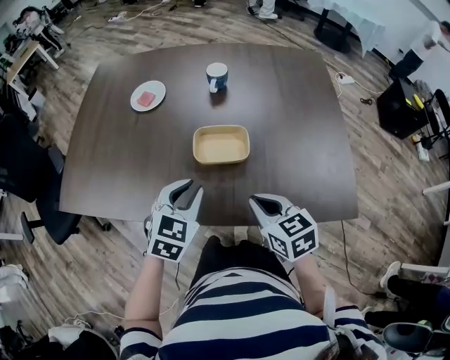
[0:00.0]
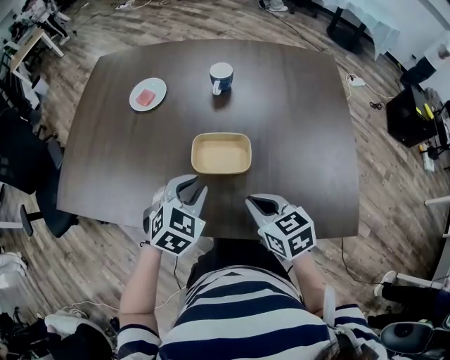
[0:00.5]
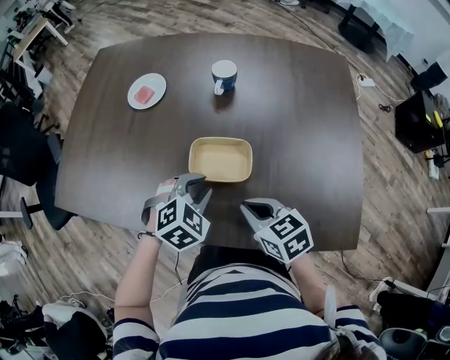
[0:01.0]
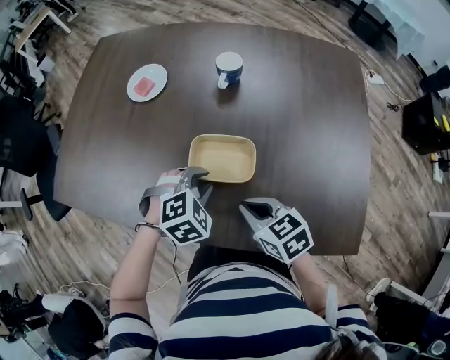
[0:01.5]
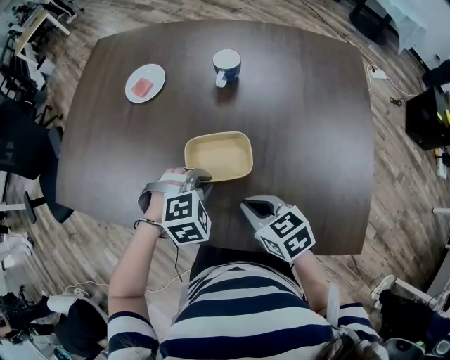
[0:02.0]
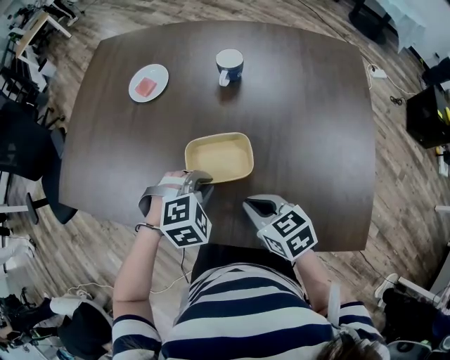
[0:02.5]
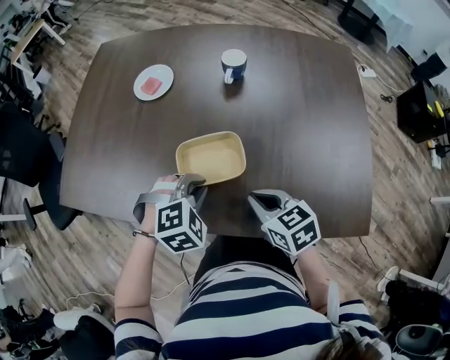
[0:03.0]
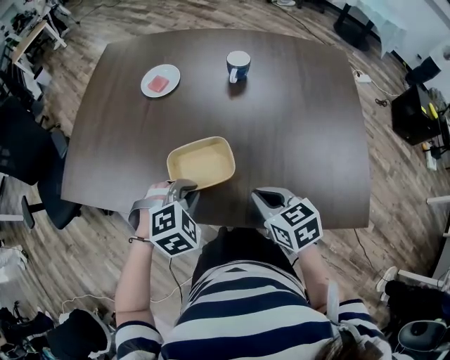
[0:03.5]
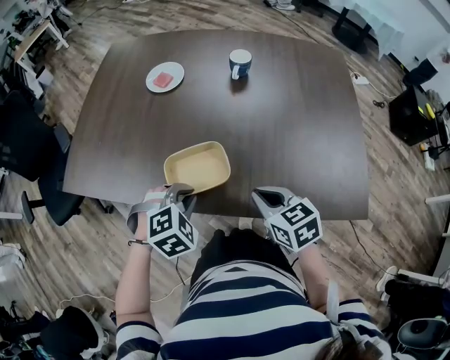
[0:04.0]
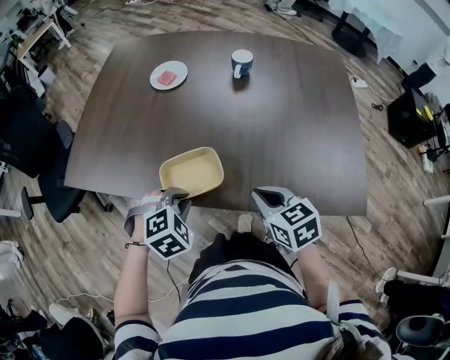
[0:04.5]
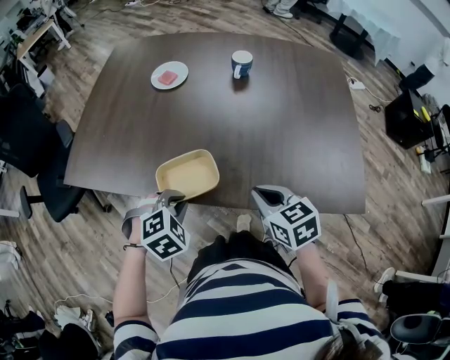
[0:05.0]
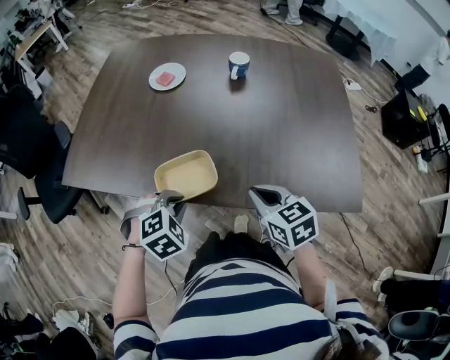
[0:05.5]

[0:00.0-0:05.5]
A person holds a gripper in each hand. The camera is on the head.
0:00.0 to 0:02.0: The left gripper travels downward, forward and to the right by approximately 15 cm, and angles its fingers downward, by approximately 30 degrees; the right gripper is displaced forward and downward by approximately 10 cm.
0:02.0 to 0:03.5: The right gripper changes place by some 10 cm. Meanwhile the left gripper is displaced to the left and backward by approximately 15 cm.
0:03.5 to 0:05.5: The right gripper goes some 5 cm backward; the left gripper is displaced backward and to the left by some 10 cm.

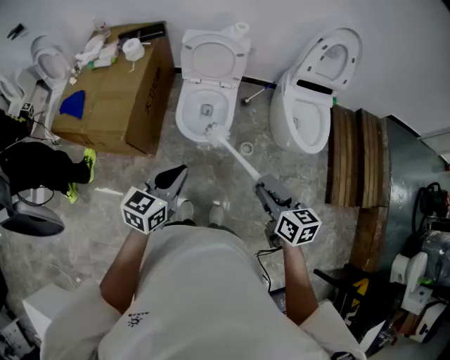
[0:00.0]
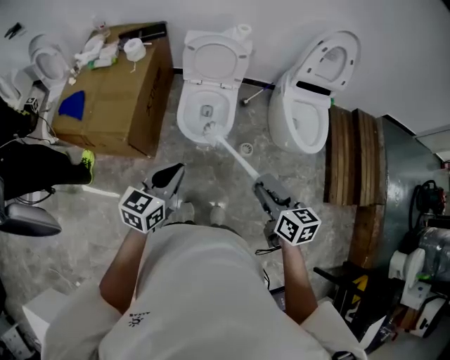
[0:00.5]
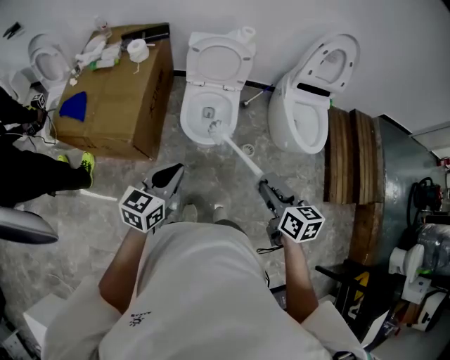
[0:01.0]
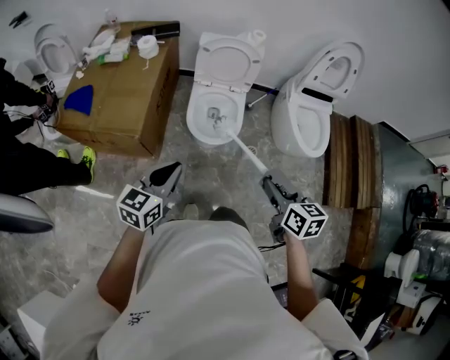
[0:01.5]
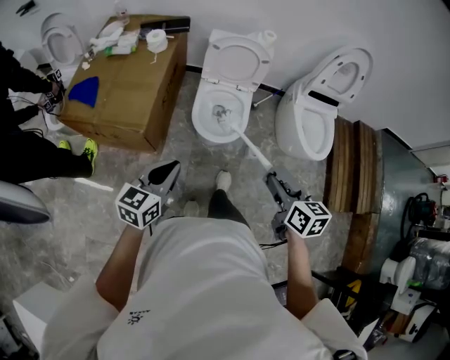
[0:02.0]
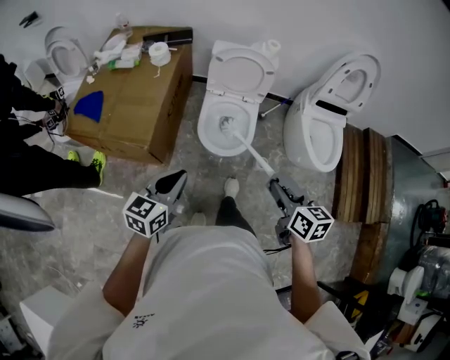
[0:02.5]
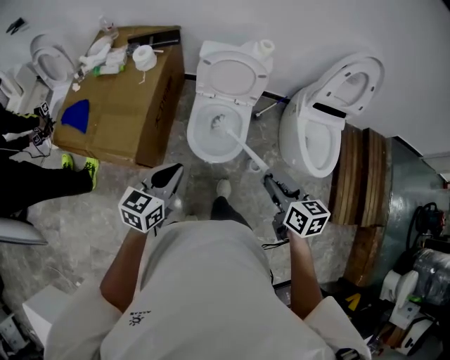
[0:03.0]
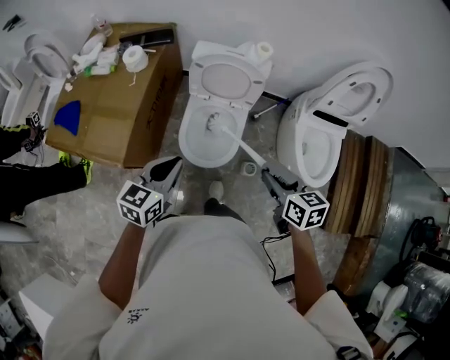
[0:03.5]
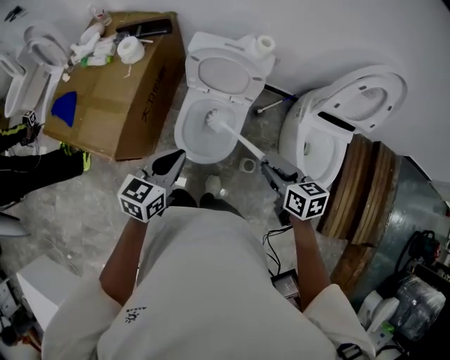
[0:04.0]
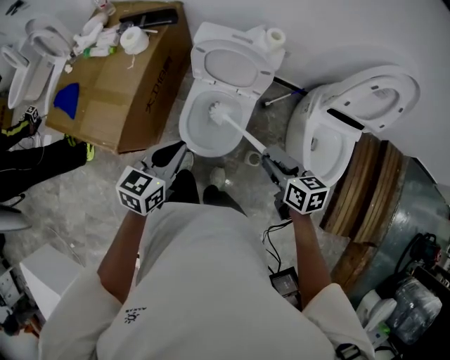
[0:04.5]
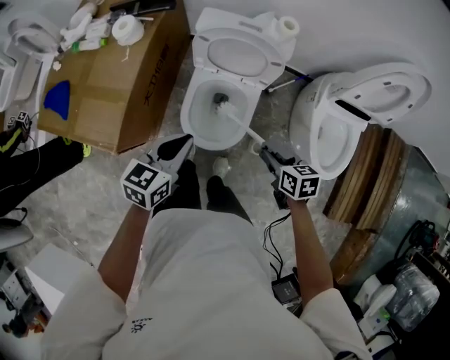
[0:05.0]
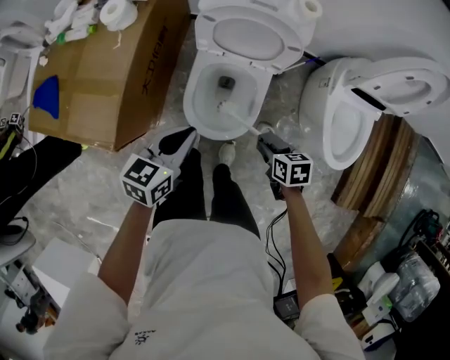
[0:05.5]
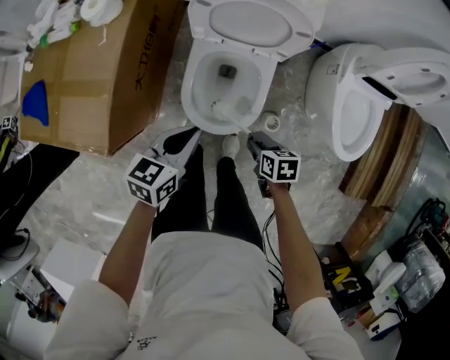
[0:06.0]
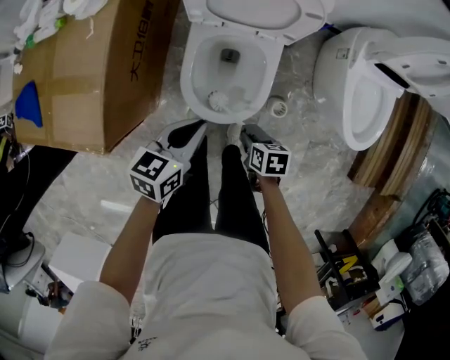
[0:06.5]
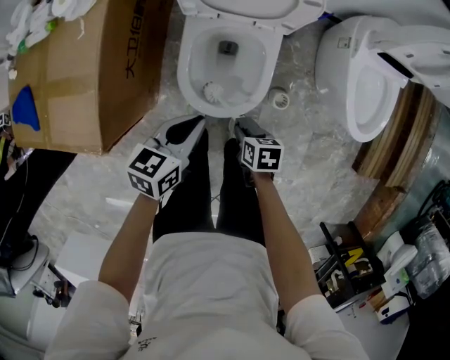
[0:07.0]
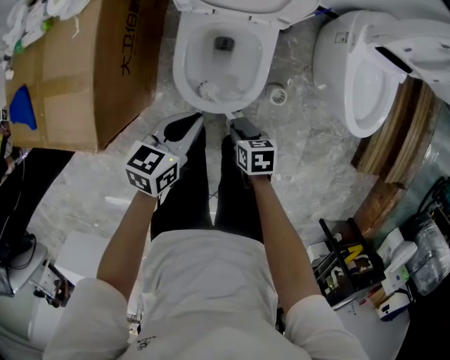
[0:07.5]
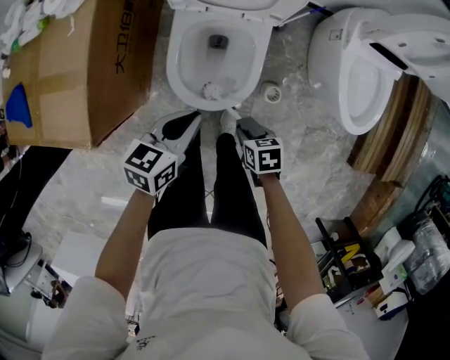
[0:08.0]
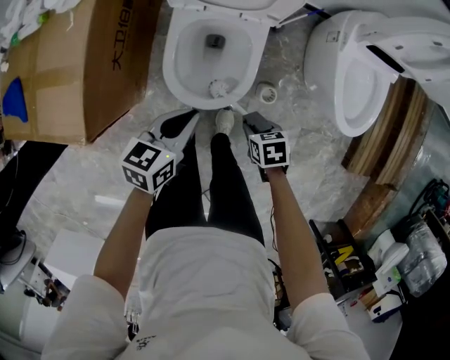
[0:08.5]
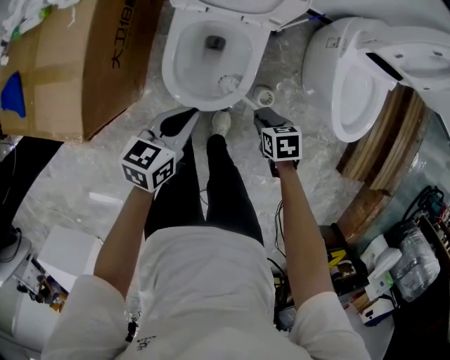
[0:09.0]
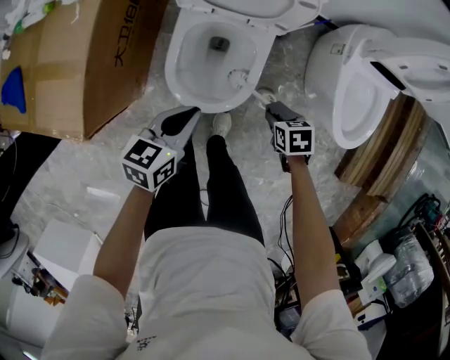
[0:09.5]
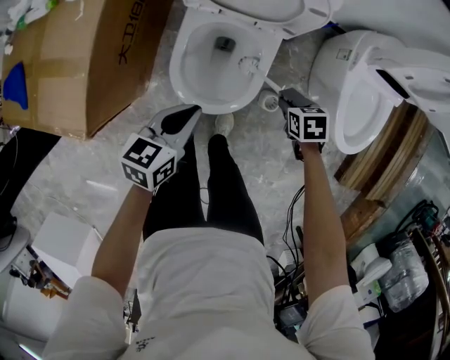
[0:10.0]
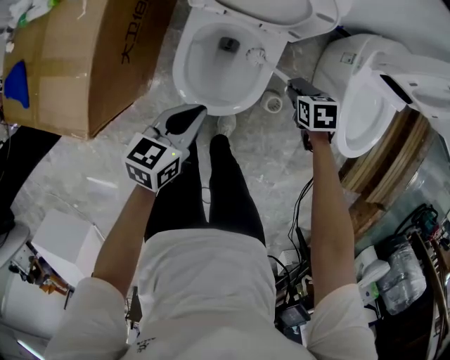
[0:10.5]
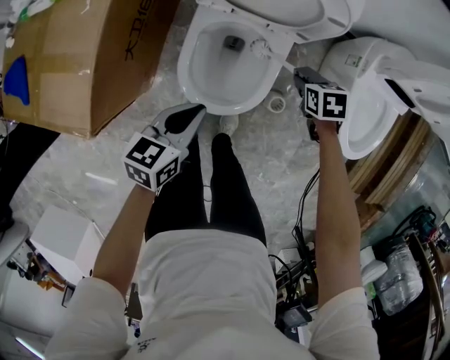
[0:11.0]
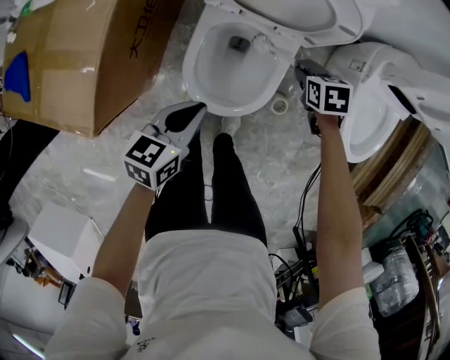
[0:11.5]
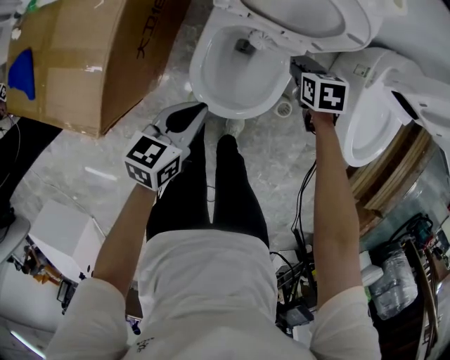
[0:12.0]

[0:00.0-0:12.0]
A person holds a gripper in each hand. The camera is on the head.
0:00.0 to 0:02.0: Both grippers travel together to the left, approximately 15 cm.
0:02.0 to 0:04.0: Both grippers travel together forward and to the right, approximately 35 cm. The right gripper changes its angle by approximately 20 degrees.
0:04.0 to 0:06.0: The left gripper goes roughly 20 cm downward, while the right gripper goes approximately 30 cm downward, and turns by some 30 degrees.
0:06.0 to 0:08.0: The left gripper goes some 5 cm downward. Meanwhile the right gripper travels backward and downward by about 10 cm.
0:08.0 to 0:10.0: The right gripper moves roughly 20 cm.
0:10.0 to 0:12.0: The left gripper changes place by roughly 5 cm, while the right gripper shifts by about 15 cm.

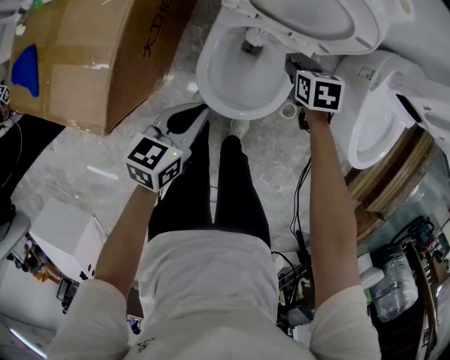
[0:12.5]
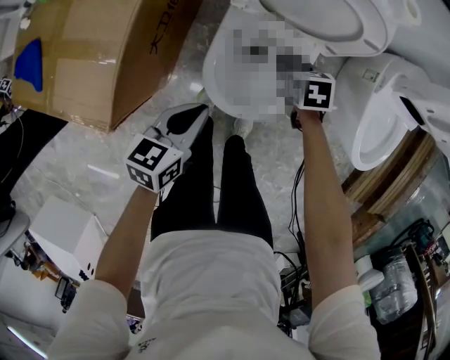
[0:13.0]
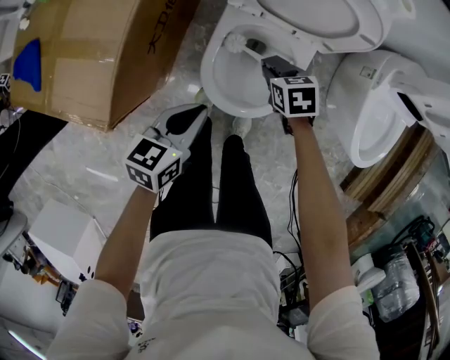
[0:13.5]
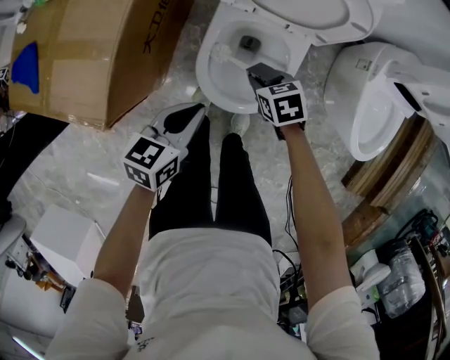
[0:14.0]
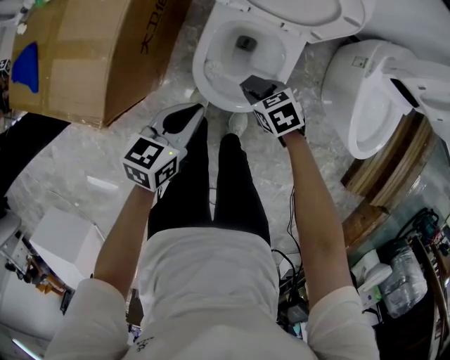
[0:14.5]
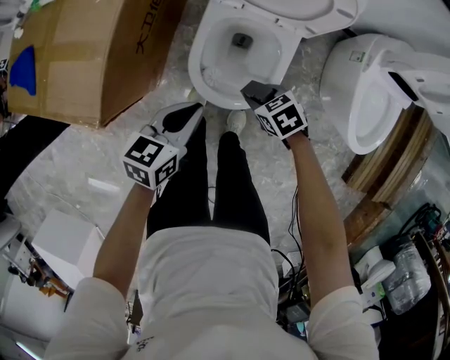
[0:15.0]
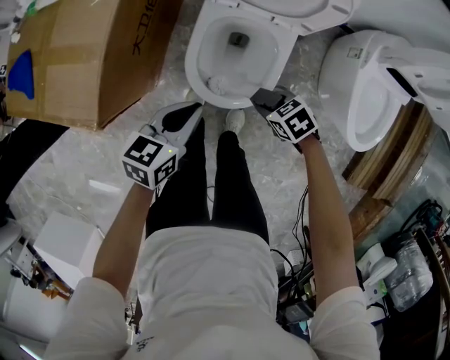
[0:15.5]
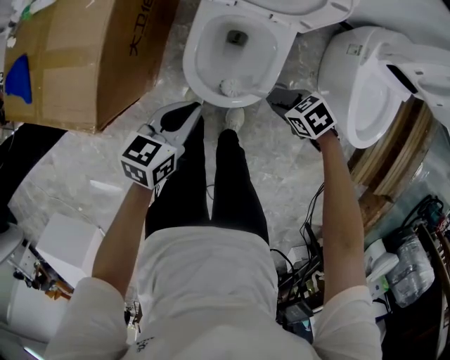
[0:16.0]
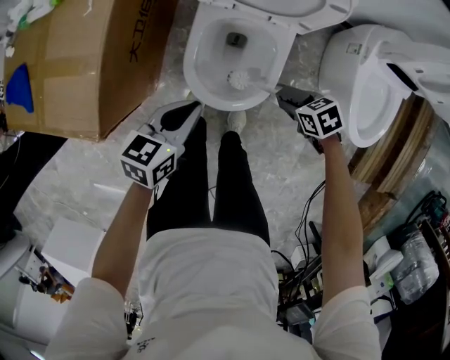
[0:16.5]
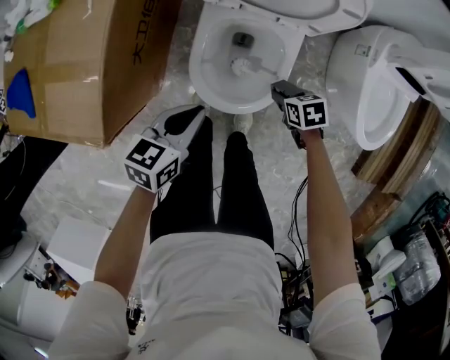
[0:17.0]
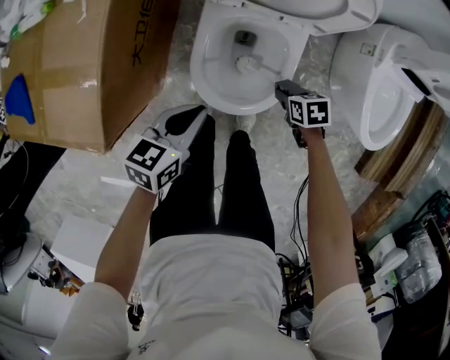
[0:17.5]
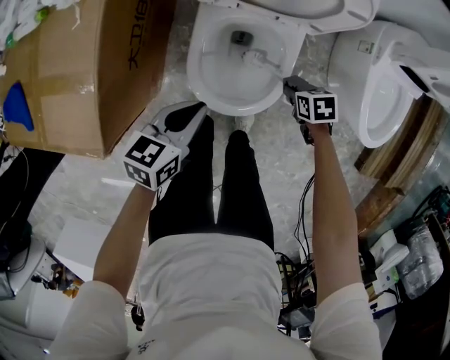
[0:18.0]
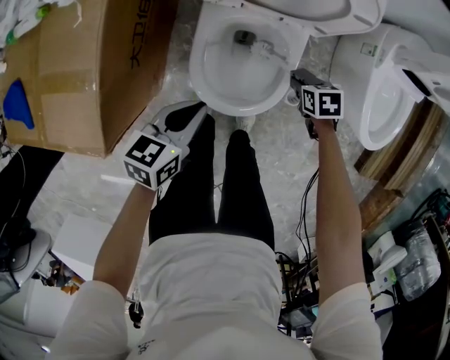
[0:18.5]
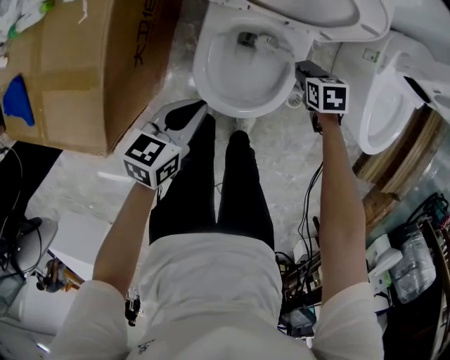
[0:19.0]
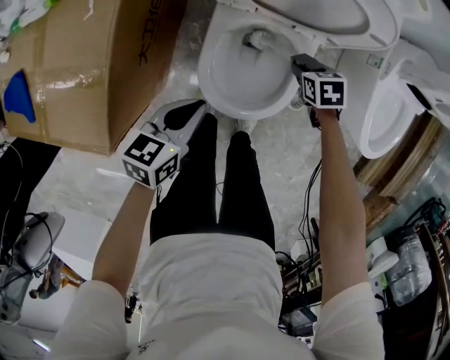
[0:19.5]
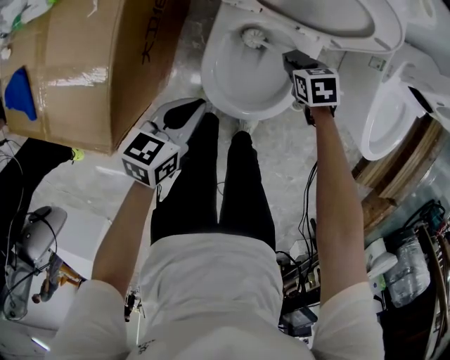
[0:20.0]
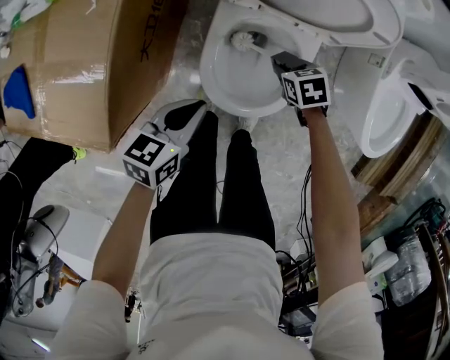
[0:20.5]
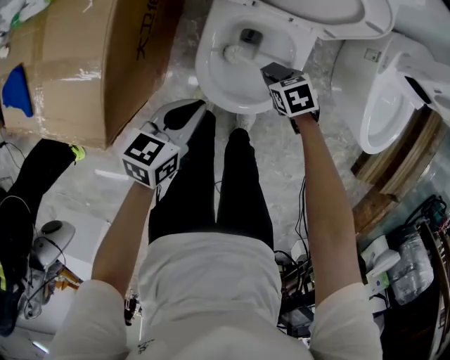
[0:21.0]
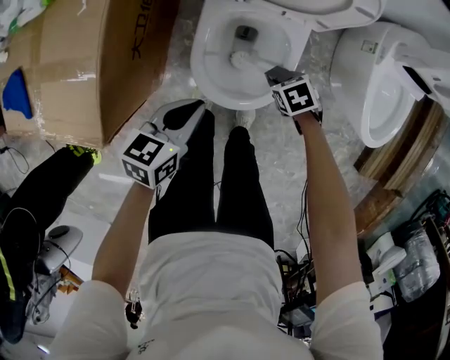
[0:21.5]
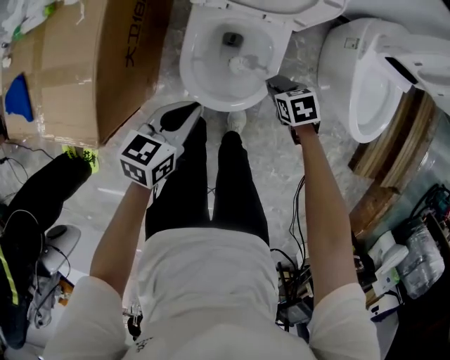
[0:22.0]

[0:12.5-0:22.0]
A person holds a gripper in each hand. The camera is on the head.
0:12.5 to 0:14.5: The right gripper goes approximately 15 cm backward and to the left, and turns by some 30 degrees.
0:14.5 to 0:16.5: The right gripper moves about 15 cm.
0:16.5 to 0:18.0: The right gripper heads downward, covering roughly 10 cm, and changes its angle by some 20 degrees.
0:18.0 to 0:20.0: The right gripper ends up approximately 15 cm from where it was.
0:20.0 to 0:22.0: The right gripper changes place by about 15 cm. Meanwhile the left gripper moves approximately 10 cm.
